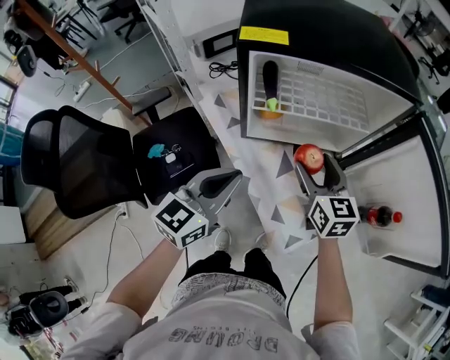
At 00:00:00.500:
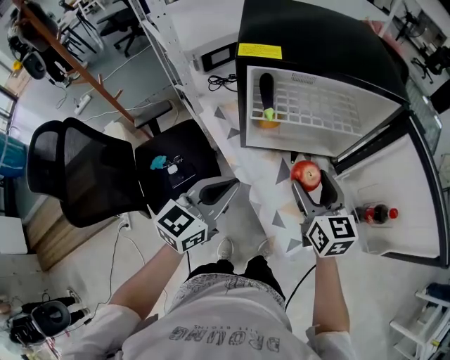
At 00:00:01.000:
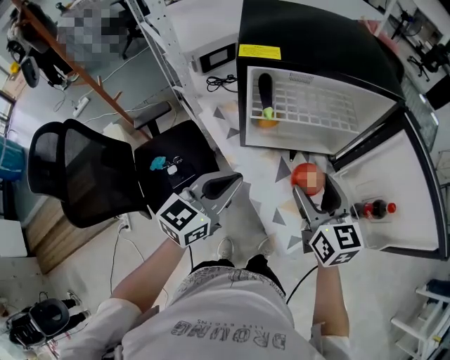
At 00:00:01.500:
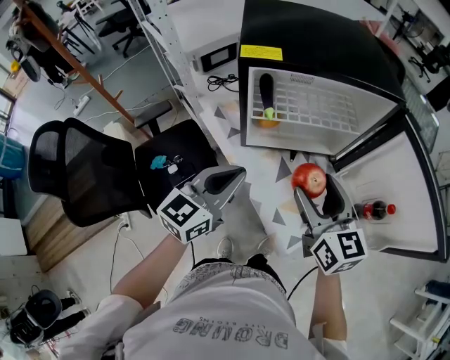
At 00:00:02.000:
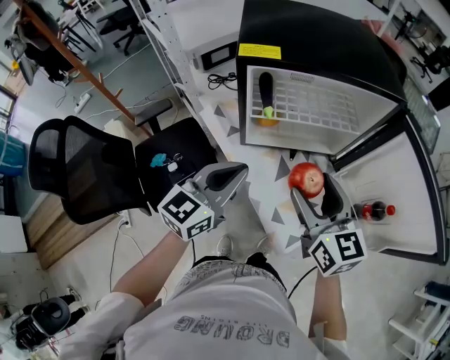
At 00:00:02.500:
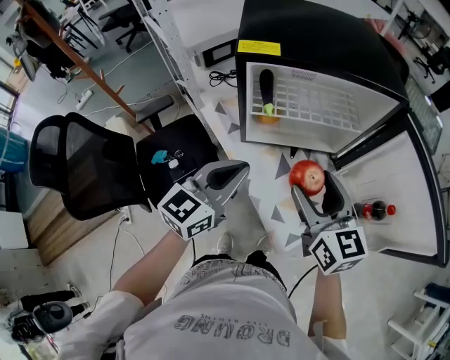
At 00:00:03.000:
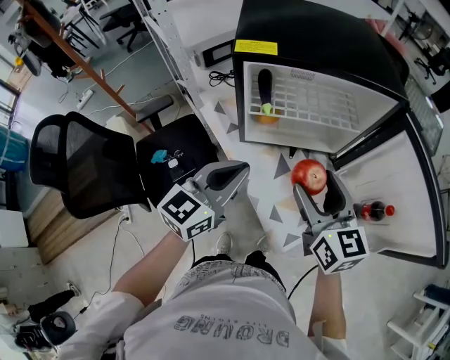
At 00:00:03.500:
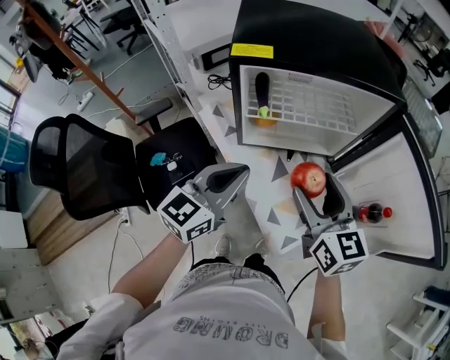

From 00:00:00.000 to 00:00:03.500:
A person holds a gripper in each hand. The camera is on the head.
From 00:00:00.000 to 00:00:02.000: The right gripper heads upward and backward, covering about 15 cm.
From 00:00:02.000 to 00:00:03.500: There are only small adjustments of the grippers.

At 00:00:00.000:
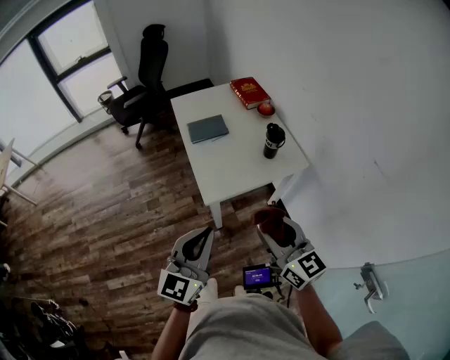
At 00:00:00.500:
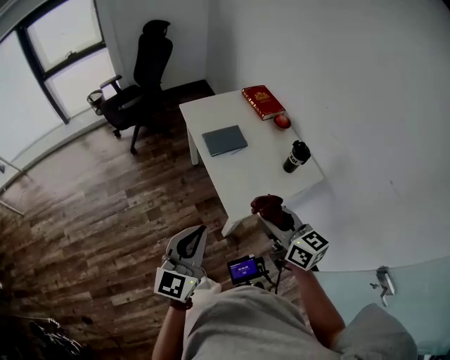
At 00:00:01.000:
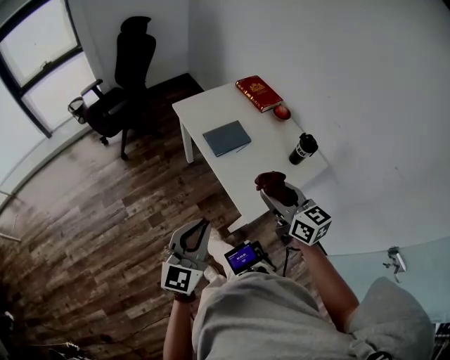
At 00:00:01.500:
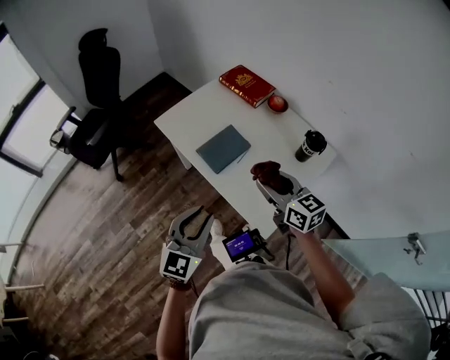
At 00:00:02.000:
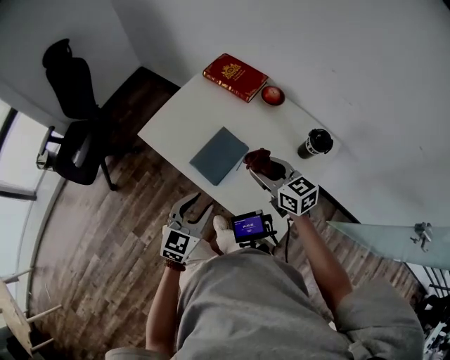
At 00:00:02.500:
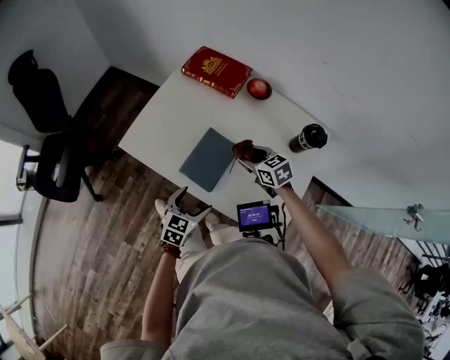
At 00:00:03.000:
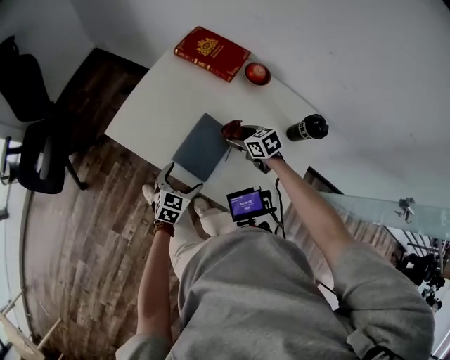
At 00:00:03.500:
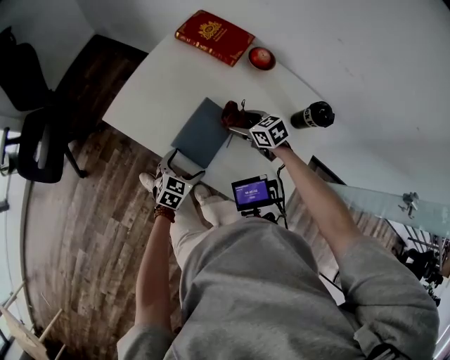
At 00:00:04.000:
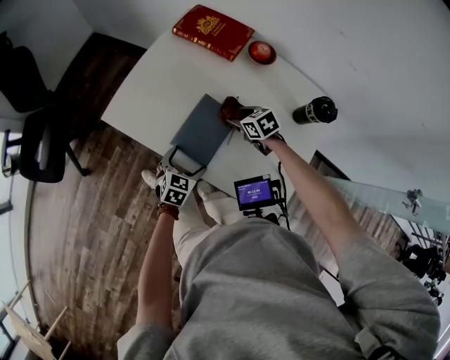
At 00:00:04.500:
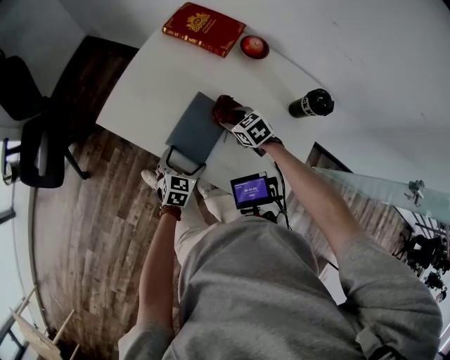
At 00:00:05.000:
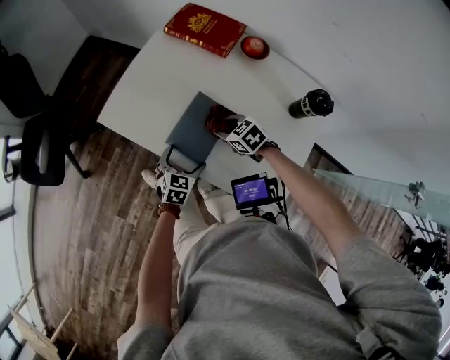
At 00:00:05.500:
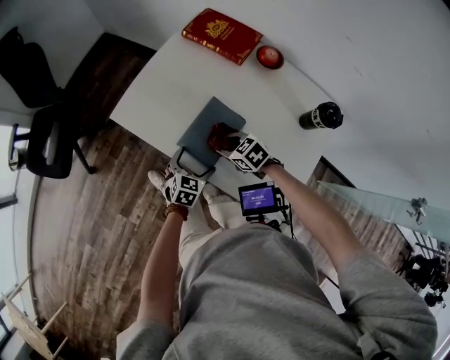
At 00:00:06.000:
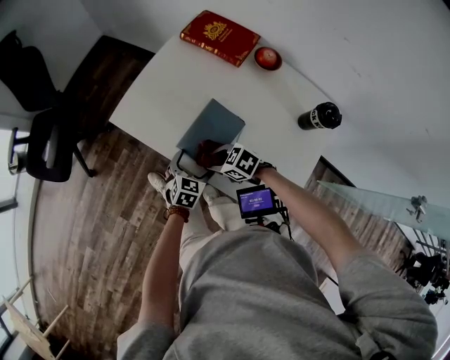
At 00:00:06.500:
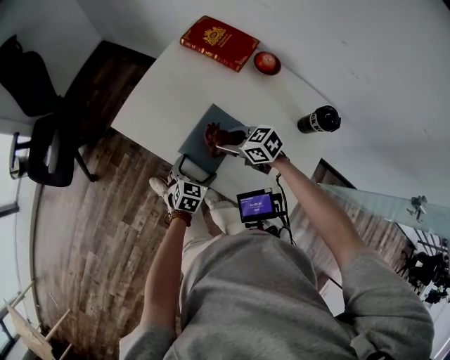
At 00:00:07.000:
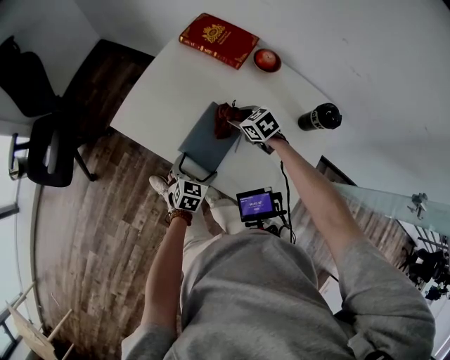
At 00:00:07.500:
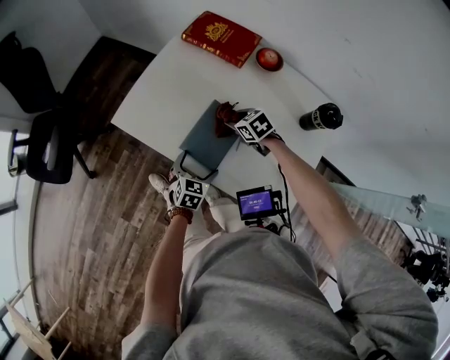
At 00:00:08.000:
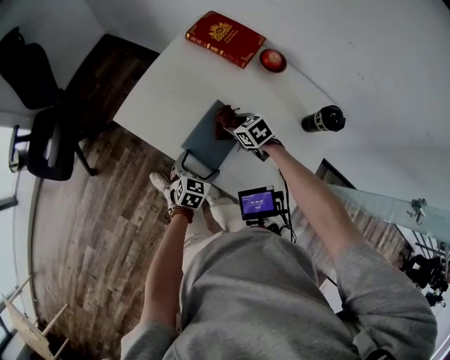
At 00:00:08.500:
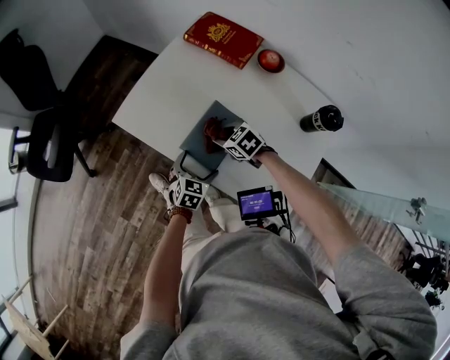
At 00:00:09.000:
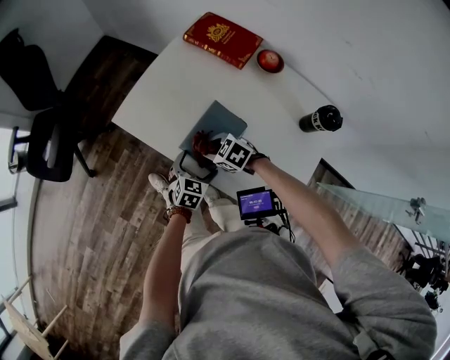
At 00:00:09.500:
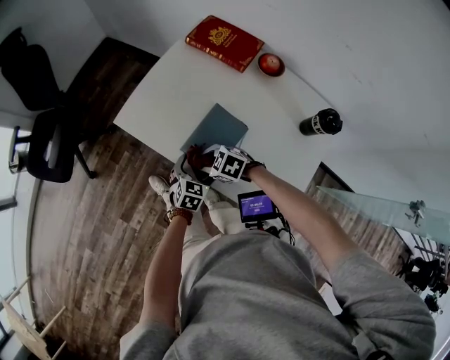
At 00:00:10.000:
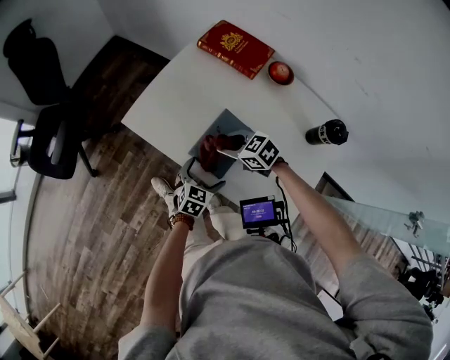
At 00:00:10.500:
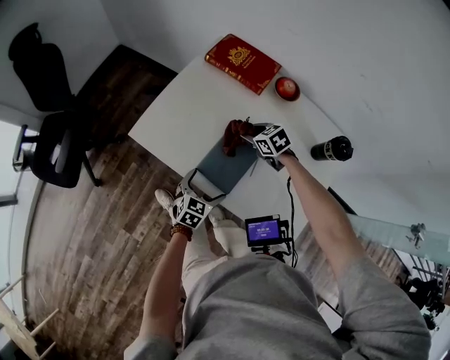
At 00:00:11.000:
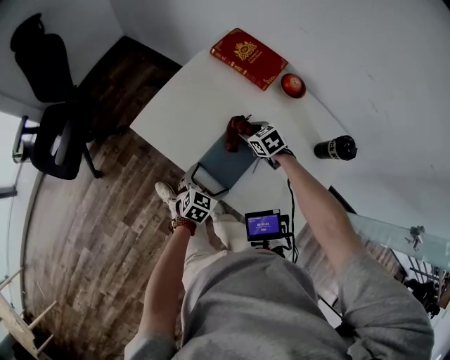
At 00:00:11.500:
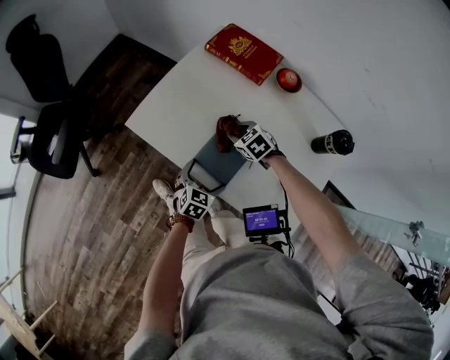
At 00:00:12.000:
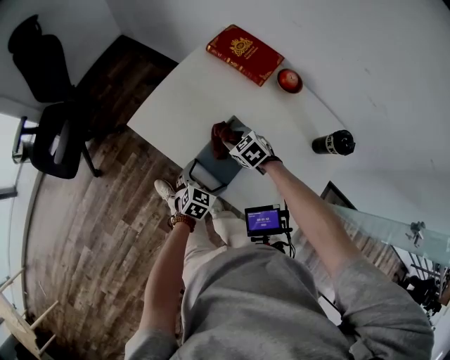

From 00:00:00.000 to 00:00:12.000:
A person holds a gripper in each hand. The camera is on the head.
From 00:00:00.000 to 00:00:02.000: The two grippers travel together, approximately 60 cm. The right gripper rotates approximately 30 degrees, while the left gripper swivels approximately 40 degrees.
From 00:00:02.000 to 00:00:04.000: Both grippers travel together downward and forward, roughly 25 cm. The right gripper tilts its fingers some 30 degrees downward. Meanwhile the left gripper rotates approximately 20 degrees, and opens.
From 00:00:04.000 to 00:00:06.000: The right gripper shifts roughly 20 cm to the left and backward, and swivels roughly 30 degrees.
From 00:00:06.000 to 00:00:08.000: The right gripper travels forward and to the right by some 15 cm, and swivels about 20 degrees.
From 00:00:08.000 to 00:00:10.000: The right gripper shifts about 10 cm to the left and upward, and rotates about 20 degrees.
From 00:00:10.000 to 00:00:12.000: The right gripper shifts some 10 cm downward and forward, and changes its angle by approximately 20 degrees.

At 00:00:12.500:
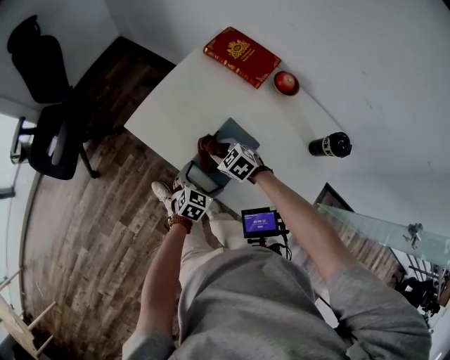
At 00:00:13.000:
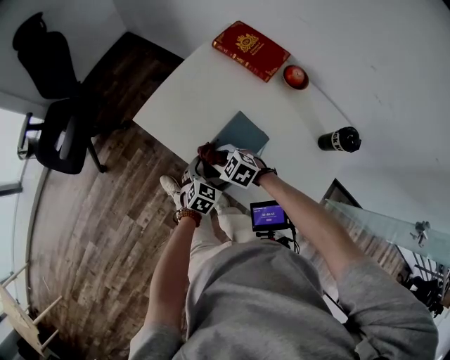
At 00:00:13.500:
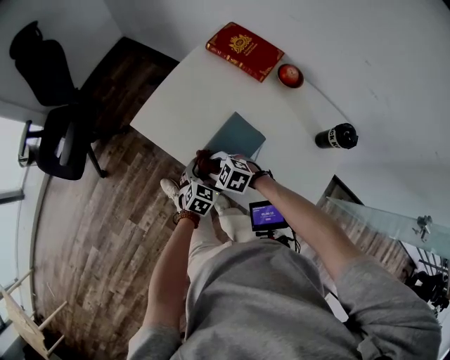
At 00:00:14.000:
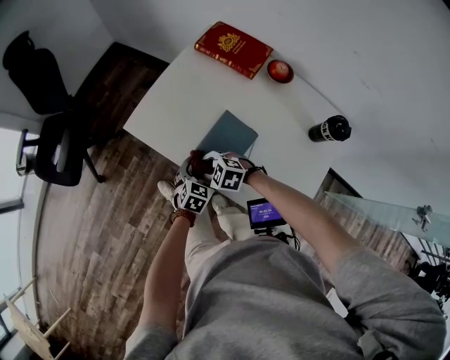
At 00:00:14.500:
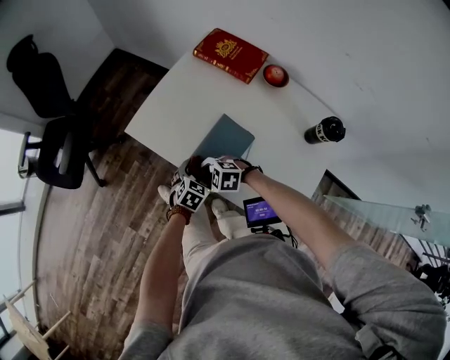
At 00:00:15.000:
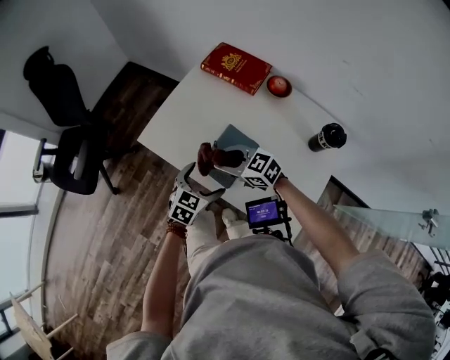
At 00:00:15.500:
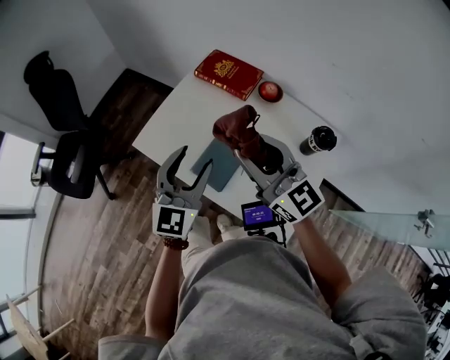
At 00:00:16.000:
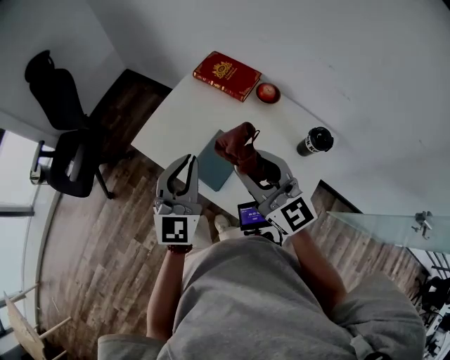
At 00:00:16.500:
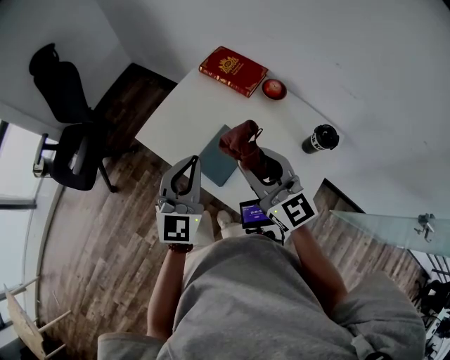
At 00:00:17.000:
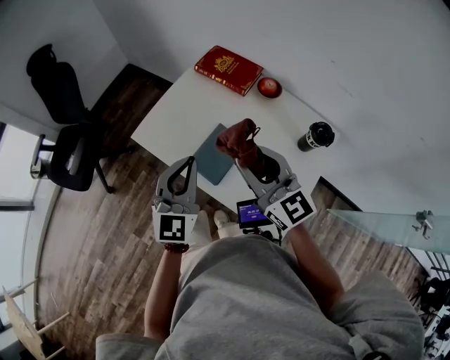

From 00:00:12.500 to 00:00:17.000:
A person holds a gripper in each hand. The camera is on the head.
From 00:00:12.500 to 00:00:14.500: The right gripper changes place by some 10 cm, and changes its angle by approximately 30 degrees.
From 00:00:14.500 to 00:00:17.000: Both grippers move upward, some 35 cm. The left gripper points its fingers about 50 degrees further upward, and closes up; the right gripper tips its fingers upward by some 50 degrees.
